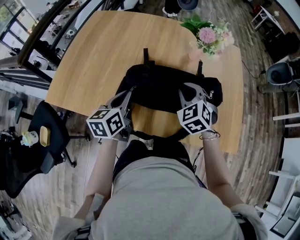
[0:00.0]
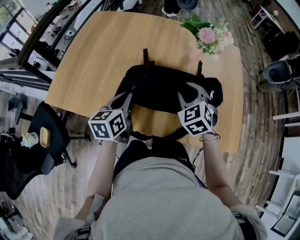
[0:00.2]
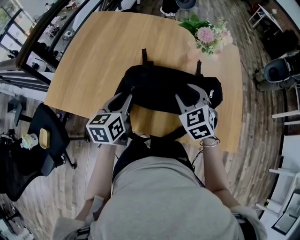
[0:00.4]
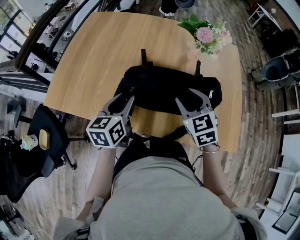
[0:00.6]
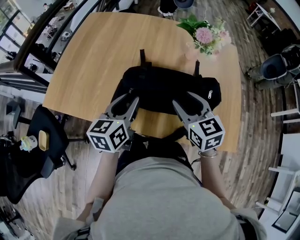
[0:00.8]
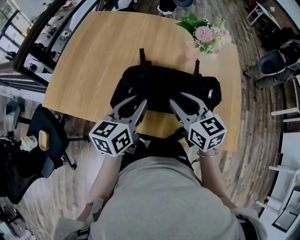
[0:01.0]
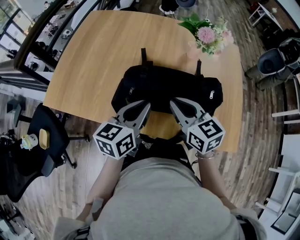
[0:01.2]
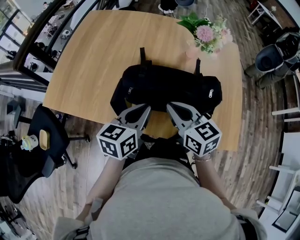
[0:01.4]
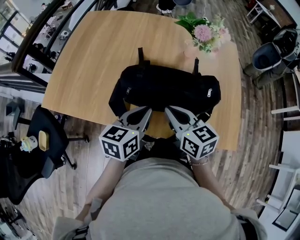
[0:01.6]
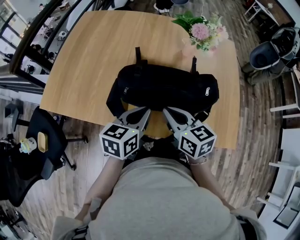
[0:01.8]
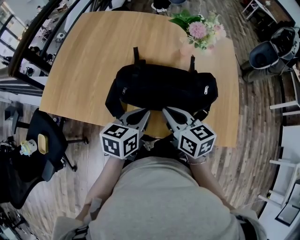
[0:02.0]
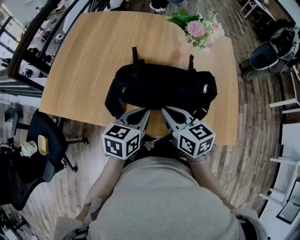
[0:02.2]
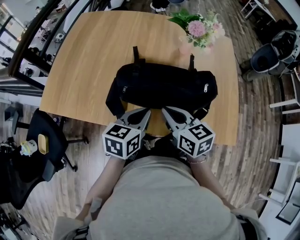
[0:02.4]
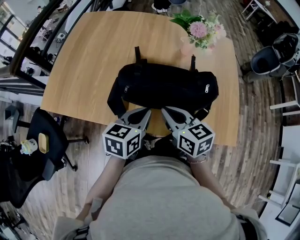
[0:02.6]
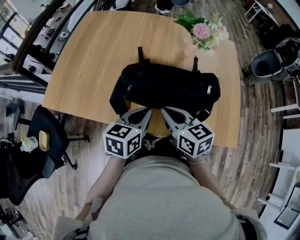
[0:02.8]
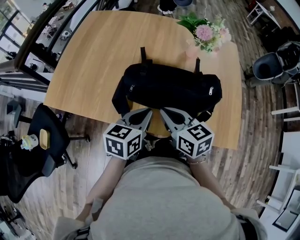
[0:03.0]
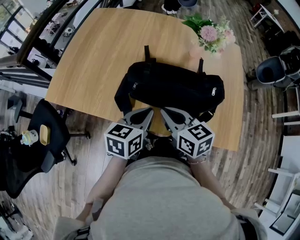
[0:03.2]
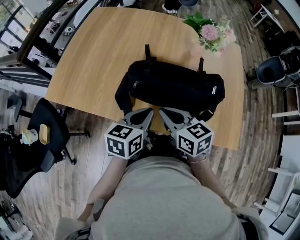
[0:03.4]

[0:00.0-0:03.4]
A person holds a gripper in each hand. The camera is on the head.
0:00.0 to 0:01.6: The right gripper heads backward, covering approximately 10 cm, rotates around the line of its fingers by about 50 degrees, clockwise from behind, and opens, then closes again. Meanwhile the left gripper heads to the right and backward, covering approximately 10 cm, and opens, then closes again.
0:01.6 to 0:03.4: The right gripper changes place by some 5 cm.

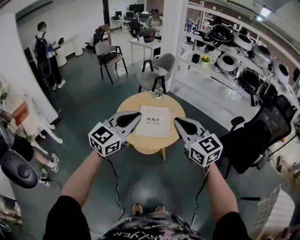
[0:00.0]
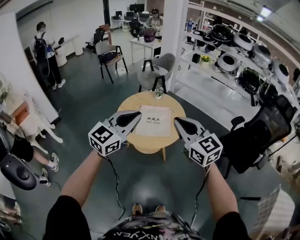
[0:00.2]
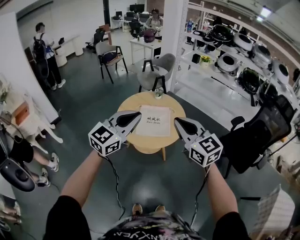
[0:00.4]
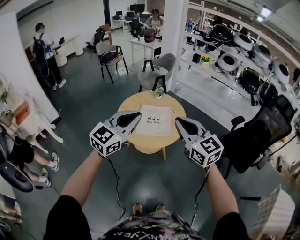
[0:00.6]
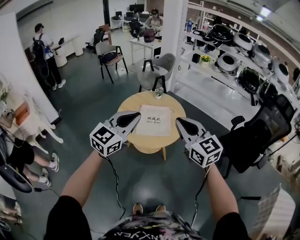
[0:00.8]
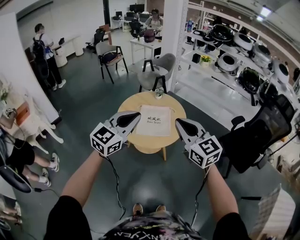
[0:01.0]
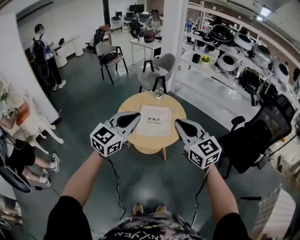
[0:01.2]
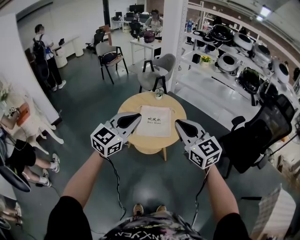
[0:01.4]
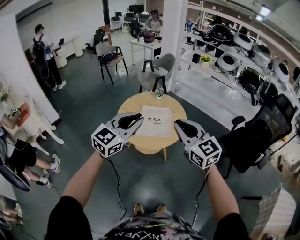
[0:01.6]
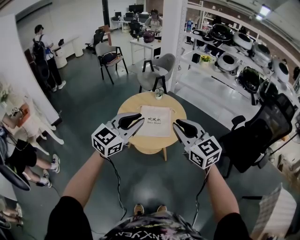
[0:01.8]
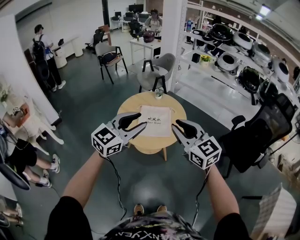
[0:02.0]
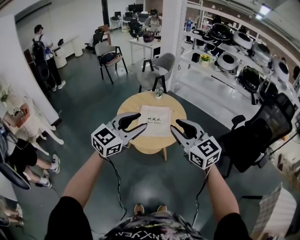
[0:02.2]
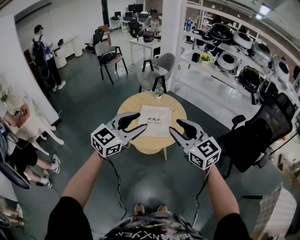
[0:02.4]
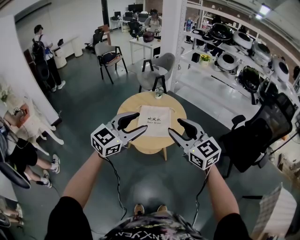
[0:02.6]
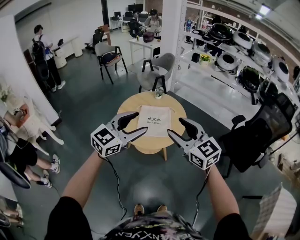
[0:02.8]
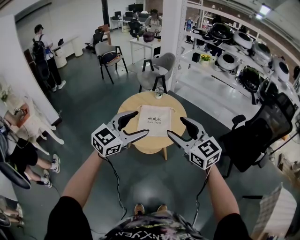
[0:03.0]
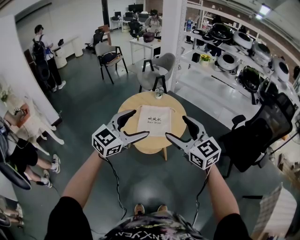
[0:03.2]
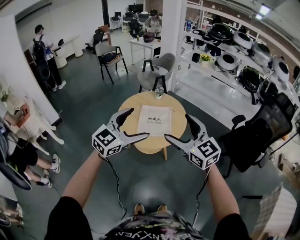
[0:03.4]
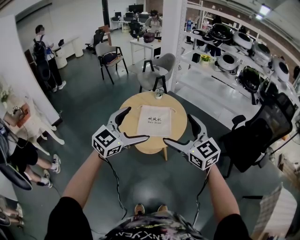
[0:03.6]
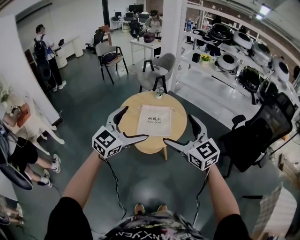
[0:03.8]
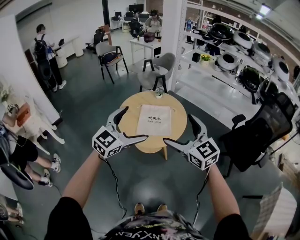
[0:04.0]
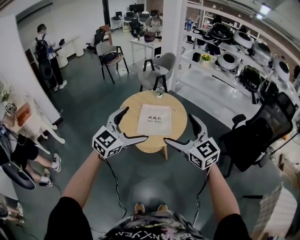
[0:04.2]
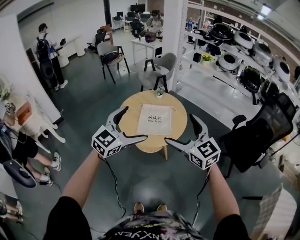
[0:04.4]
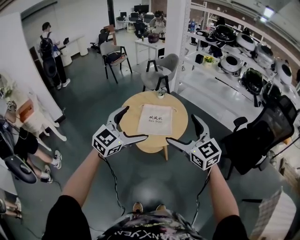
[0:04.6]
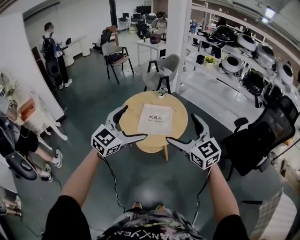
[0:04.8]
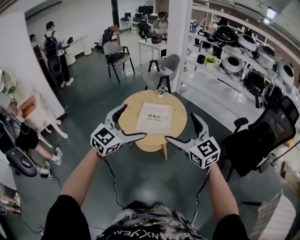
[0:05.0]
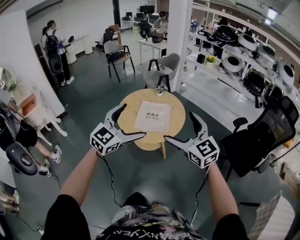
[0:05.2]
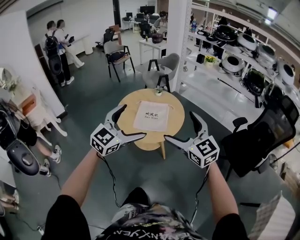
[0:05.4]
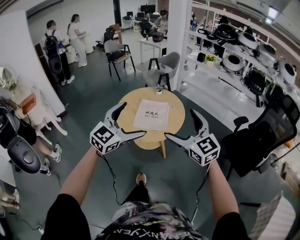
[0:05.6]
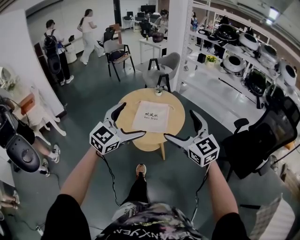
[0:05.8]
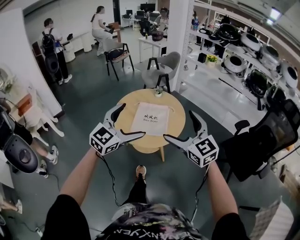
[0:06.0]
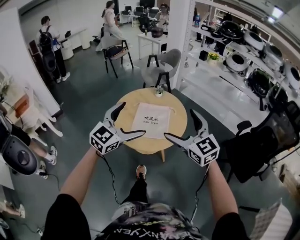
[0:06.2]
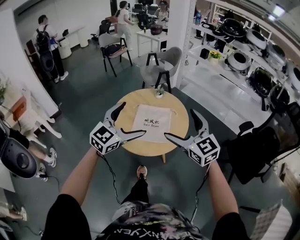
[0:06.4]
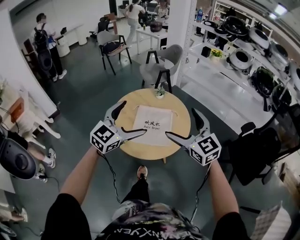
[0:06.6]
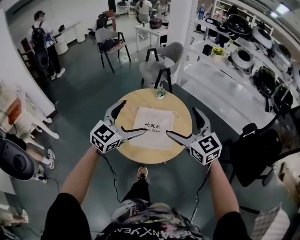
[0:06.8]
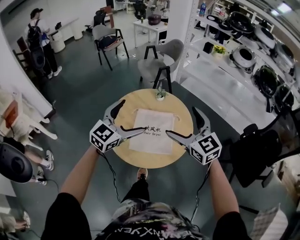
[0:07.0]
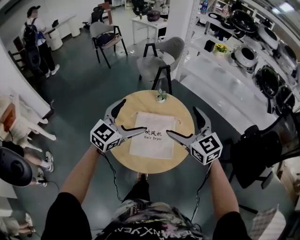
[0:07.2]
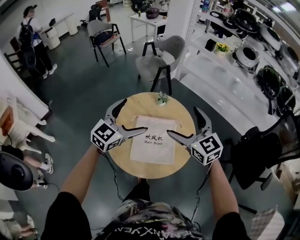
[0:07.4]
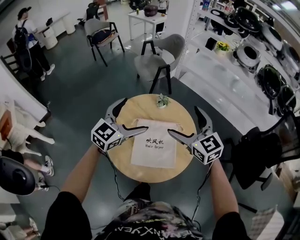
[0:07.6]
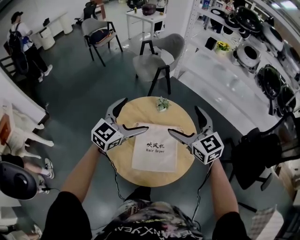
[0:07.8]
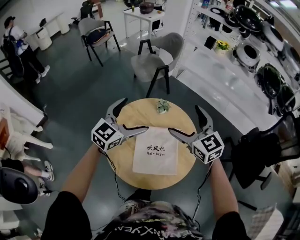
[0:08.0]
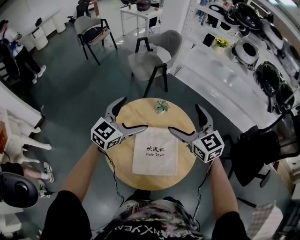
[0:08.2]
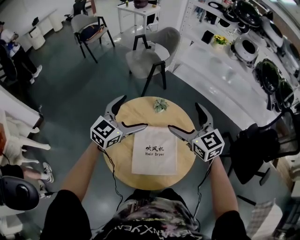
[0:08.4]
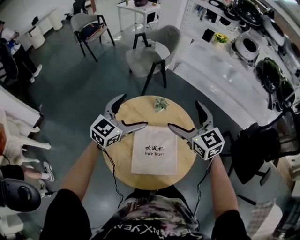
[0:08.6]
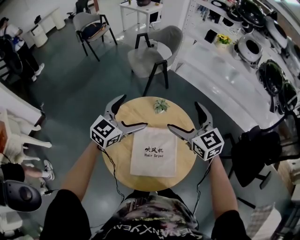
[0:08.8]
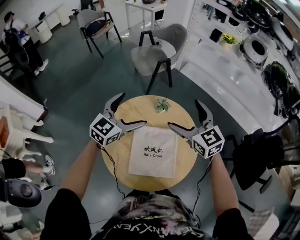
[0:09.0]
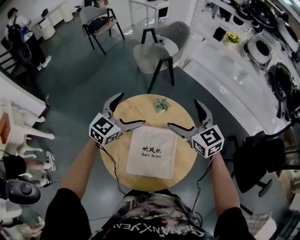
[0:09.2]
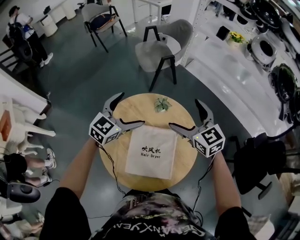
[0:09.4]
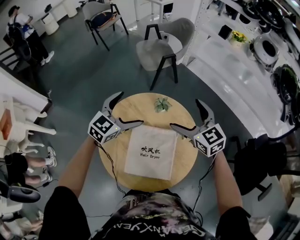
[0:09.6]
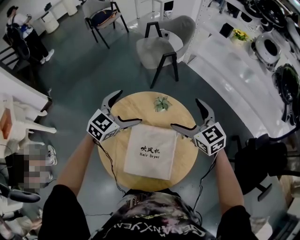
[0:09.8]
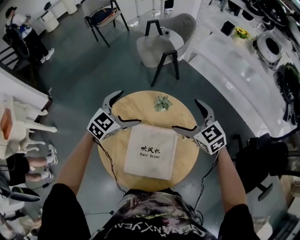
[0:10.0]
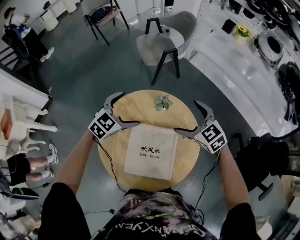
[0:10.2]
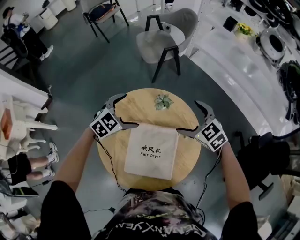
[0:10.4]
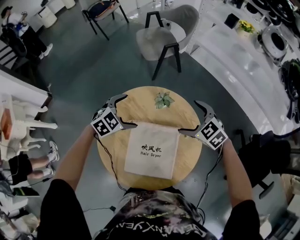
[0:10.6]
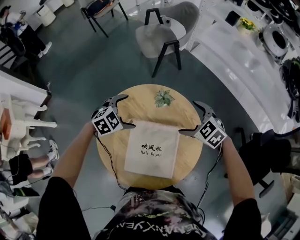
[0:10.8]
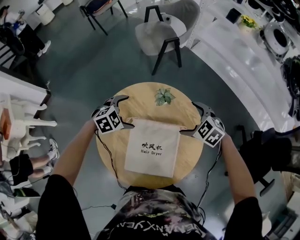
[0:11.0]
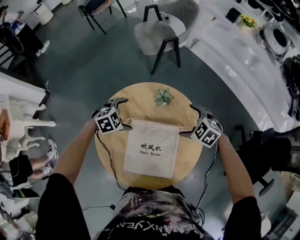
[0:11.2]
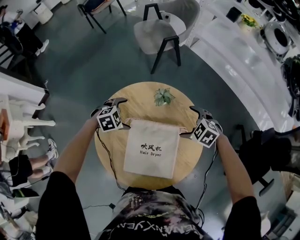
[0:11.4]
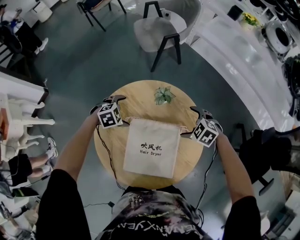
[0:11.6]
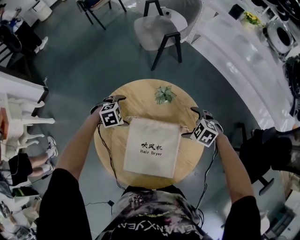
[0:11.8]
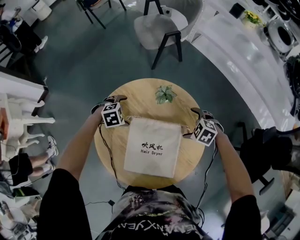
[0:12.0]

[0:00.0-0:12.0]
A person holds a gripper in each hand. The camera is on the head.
0:00.0 to 0:01.6: Both grippers stay put.
0:01.6 to 0:03.0: The left gripper opens; the right gripper opens its fingers.
0:03.0 to 0:04.4: The right gripper opens up. The left gripper opens up.
0:04.4 to 0:06.0: The right gripper heads to the right, covering some 5 cm. The left gripper shifts by roughly 5 cm.
0:06.0 to 0:07.6: Both grippers move forward, some 35 cm.
0:07.6 to 0:09.0: Both grippers move forward, approximately 10 cm.
0:09.0 to 0:10.4: Both grippers travel together downward, approximately 15 cm. The right gripper turns by some 30 degrees. The left gripper swivels roughly 30 degrees.
0:10.4 to 0:12.0: Both grippers travel together downward, about 20 cm. The left gripper points its fingers roughly 30 degrees further downward, while the right gripper rotates approximately 30 degrees.

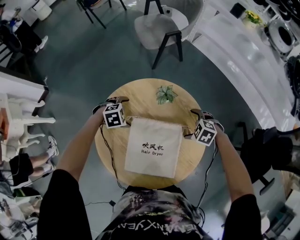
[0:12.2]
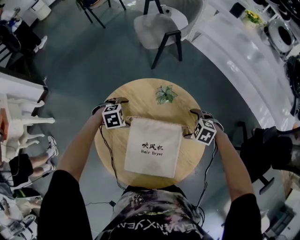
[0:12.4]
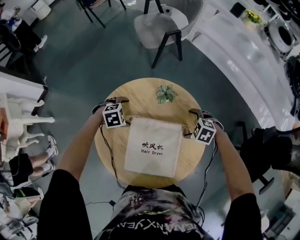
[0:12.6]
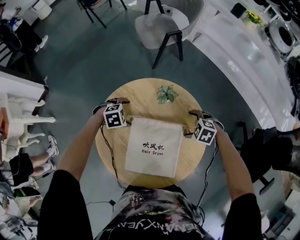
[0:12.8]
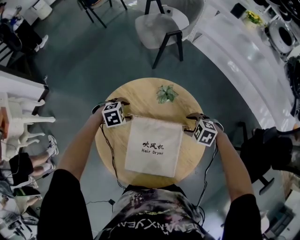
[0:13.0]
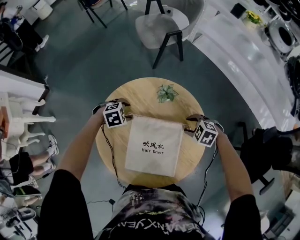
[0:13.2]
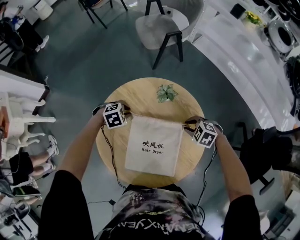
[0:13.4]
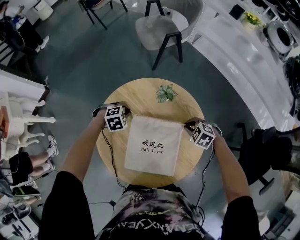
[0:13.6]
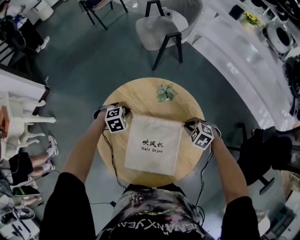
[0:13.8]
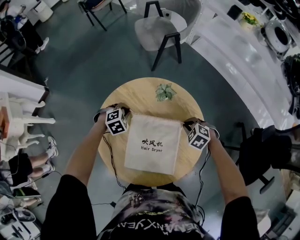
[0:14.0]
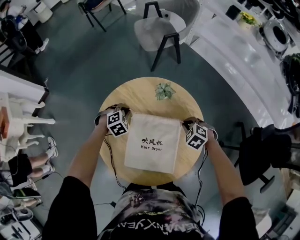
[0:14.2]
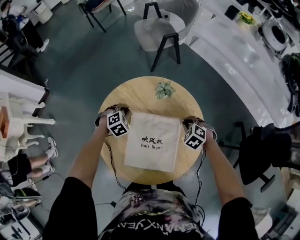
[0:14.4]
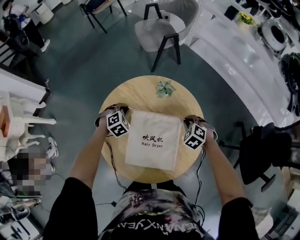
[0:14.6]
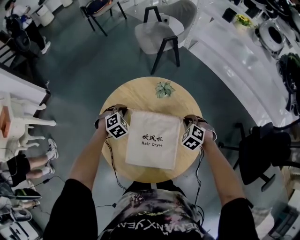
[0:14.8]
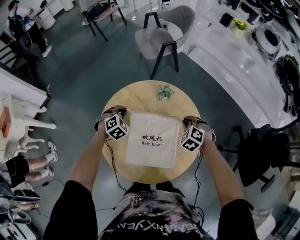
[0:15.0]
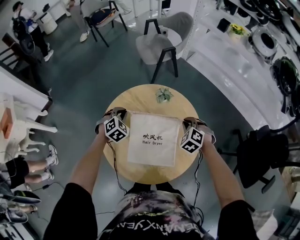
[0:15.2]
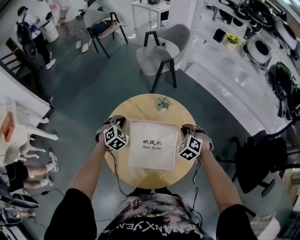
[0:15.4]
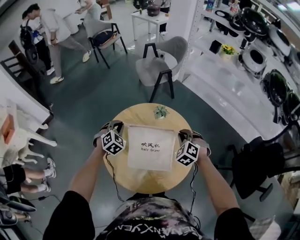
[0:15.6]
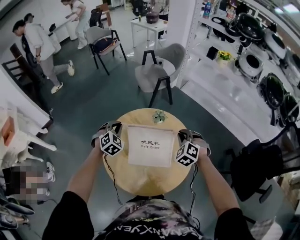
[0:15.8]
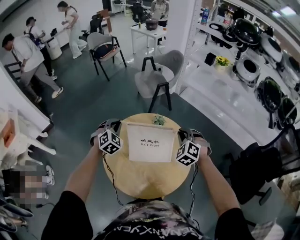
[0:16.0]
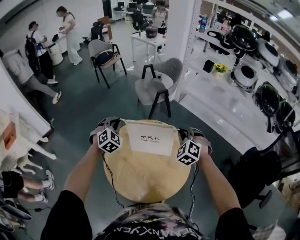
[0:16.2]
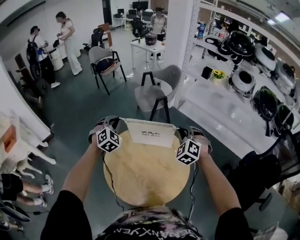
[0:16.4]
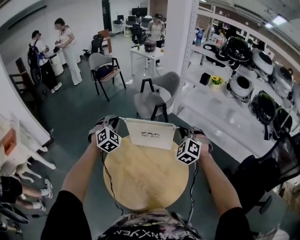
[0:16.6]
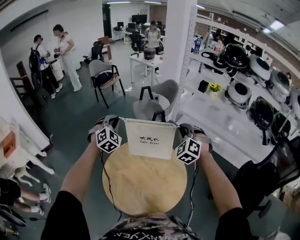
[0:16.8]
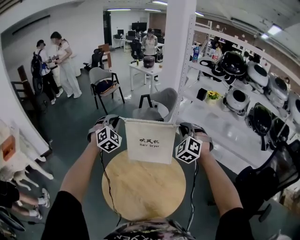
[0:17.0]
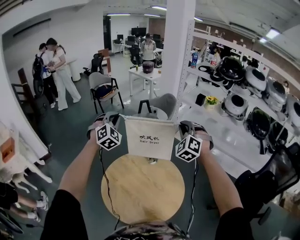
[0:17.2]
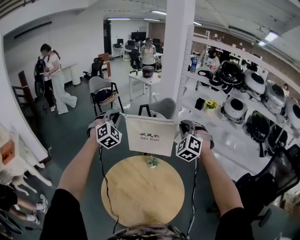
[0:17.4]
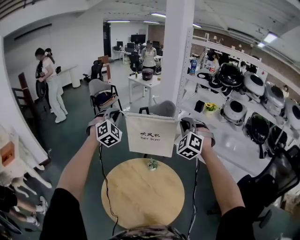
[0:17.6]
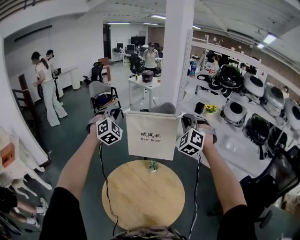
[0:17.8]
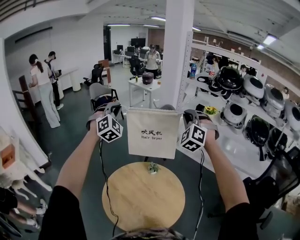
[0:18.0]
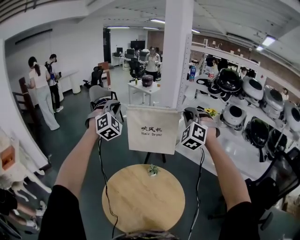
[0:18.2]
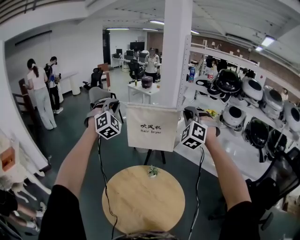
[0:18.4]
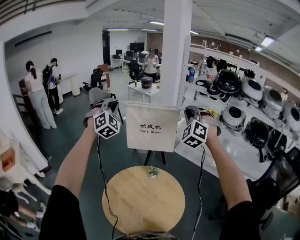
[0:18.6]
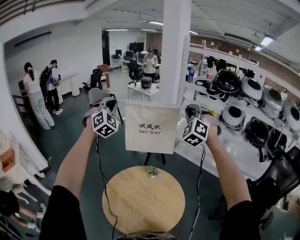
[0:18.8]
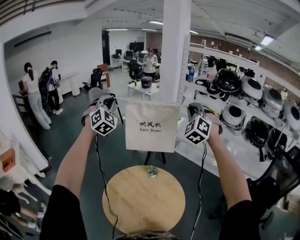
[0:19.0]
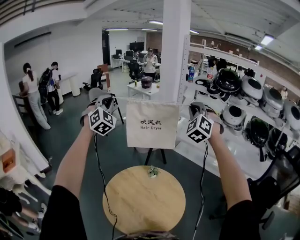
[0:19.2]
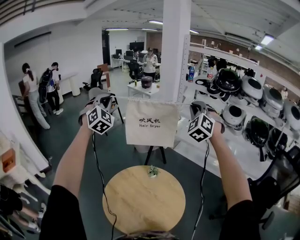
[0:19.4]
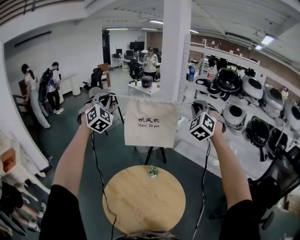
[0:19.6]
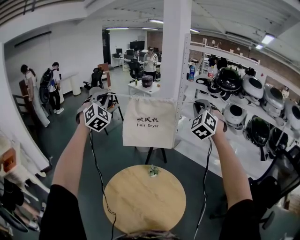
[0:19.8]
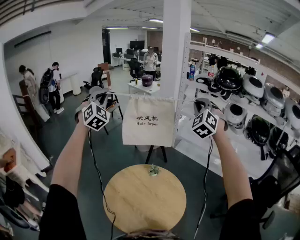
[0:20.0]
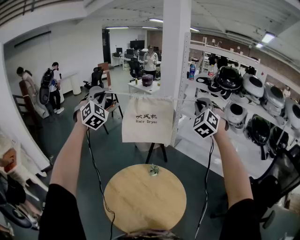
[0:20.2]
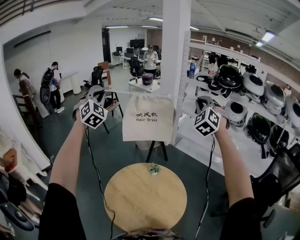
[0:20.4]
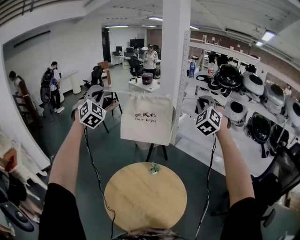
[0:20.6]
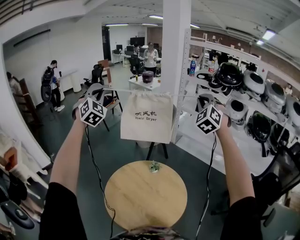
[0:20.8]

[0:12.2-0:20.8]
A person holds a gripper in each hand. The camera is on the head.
0:12.2 to 0:13.6: The right gripper closes. The left gripper closes its fingers.
0:13.6 to 0:15.0: Both grippers move upward, roughly 5 cm. The left gripper rotates about 30 degrees. Meanwhile the right gripper turns by about 30 degrees.
0:15.0 to 0:16.6: Both grippers travel together upward, some 30 cm. The left gripper angles its fingers upward, by about 30 degrees. Meanwhile the right gripper angles its fingers upward, by approximately 30 degrees.
0:16.6 to 0:18.0: The two grippers go approximately 25 cm upward. The left gripper swivels about 20 degrees. The right gripper turns by some 20 degrees.
0:18.0 to 0:19.4: Both grippers move upward, some 5 cm.
0:19.4 to 0:20.8: The grippers make only small movements.
